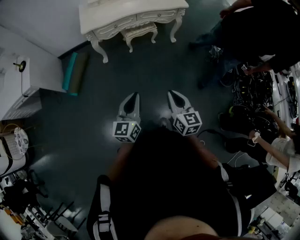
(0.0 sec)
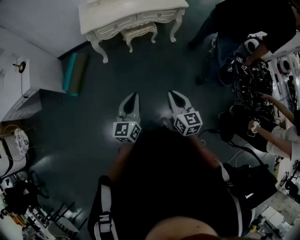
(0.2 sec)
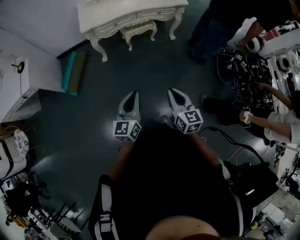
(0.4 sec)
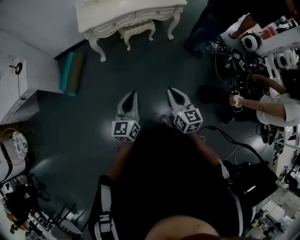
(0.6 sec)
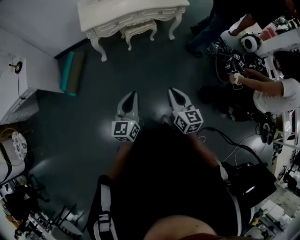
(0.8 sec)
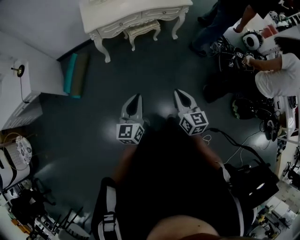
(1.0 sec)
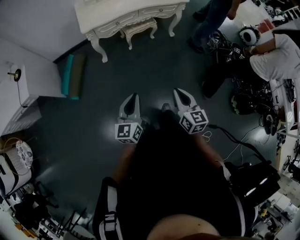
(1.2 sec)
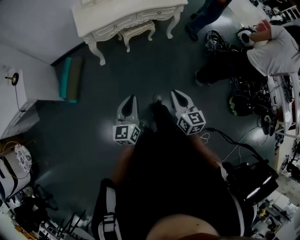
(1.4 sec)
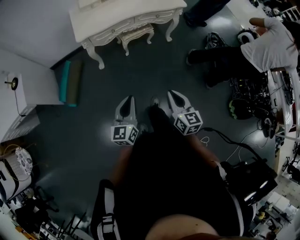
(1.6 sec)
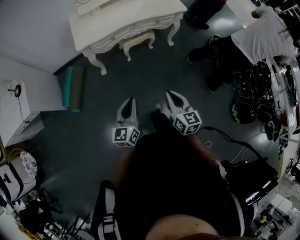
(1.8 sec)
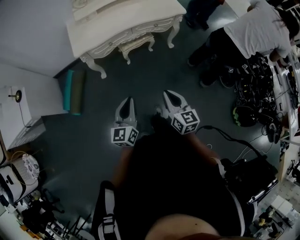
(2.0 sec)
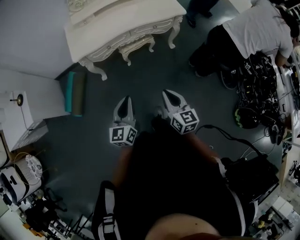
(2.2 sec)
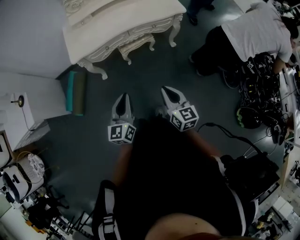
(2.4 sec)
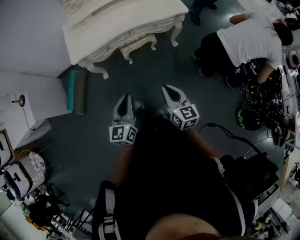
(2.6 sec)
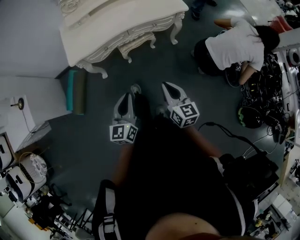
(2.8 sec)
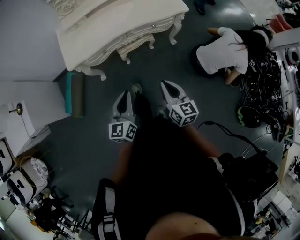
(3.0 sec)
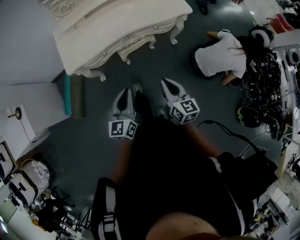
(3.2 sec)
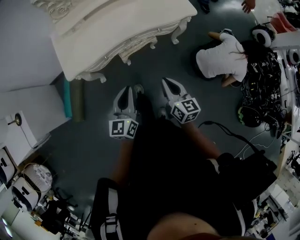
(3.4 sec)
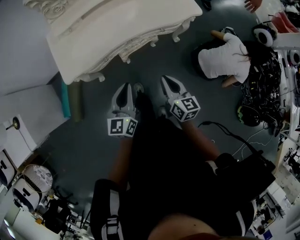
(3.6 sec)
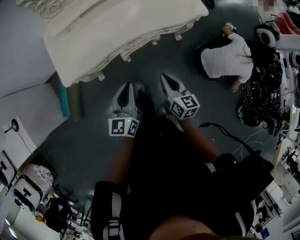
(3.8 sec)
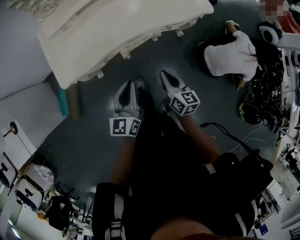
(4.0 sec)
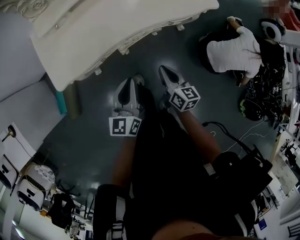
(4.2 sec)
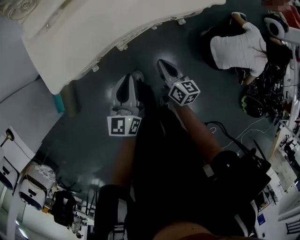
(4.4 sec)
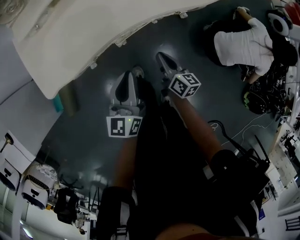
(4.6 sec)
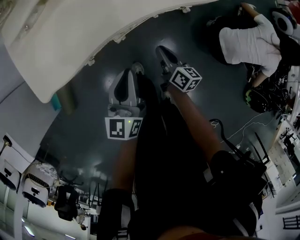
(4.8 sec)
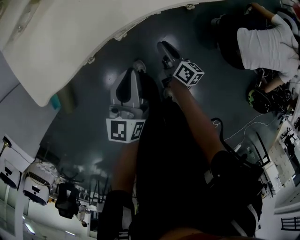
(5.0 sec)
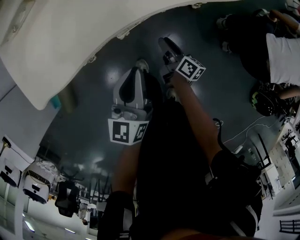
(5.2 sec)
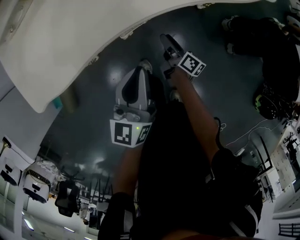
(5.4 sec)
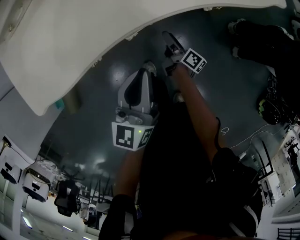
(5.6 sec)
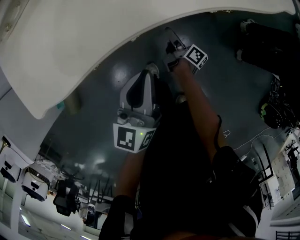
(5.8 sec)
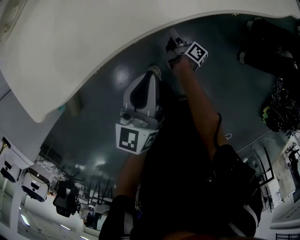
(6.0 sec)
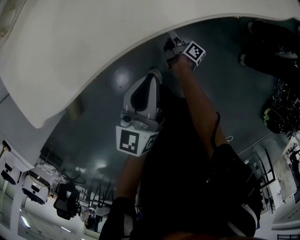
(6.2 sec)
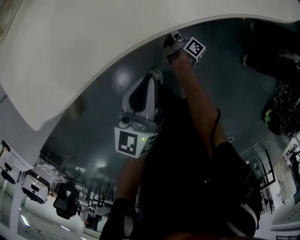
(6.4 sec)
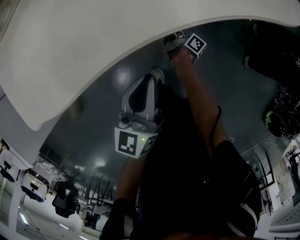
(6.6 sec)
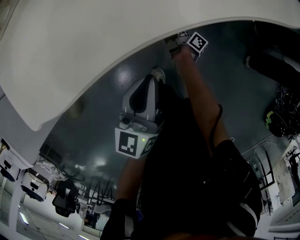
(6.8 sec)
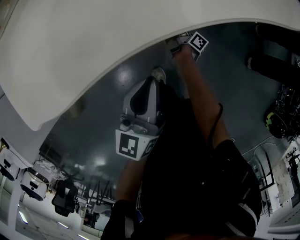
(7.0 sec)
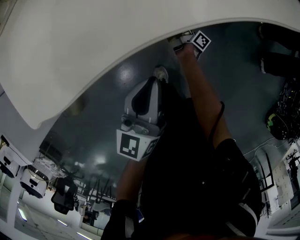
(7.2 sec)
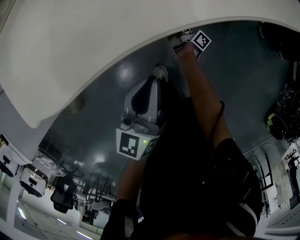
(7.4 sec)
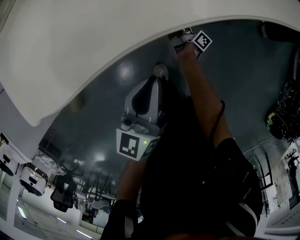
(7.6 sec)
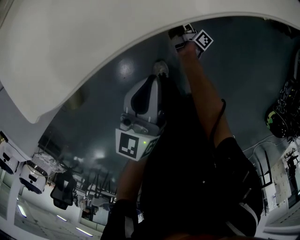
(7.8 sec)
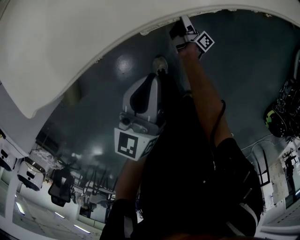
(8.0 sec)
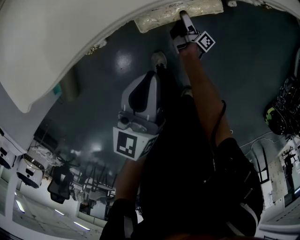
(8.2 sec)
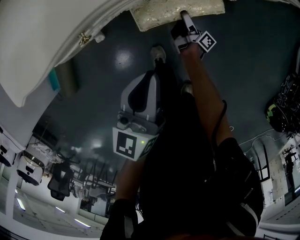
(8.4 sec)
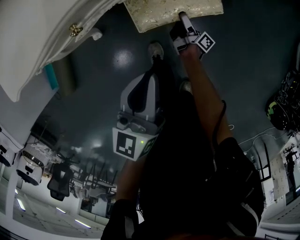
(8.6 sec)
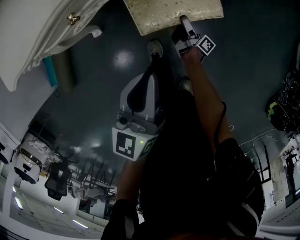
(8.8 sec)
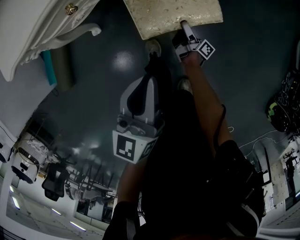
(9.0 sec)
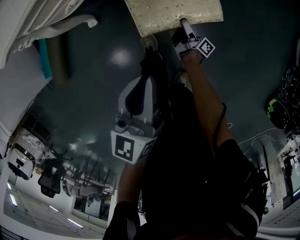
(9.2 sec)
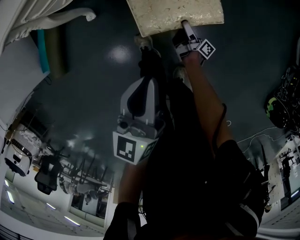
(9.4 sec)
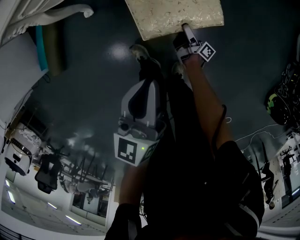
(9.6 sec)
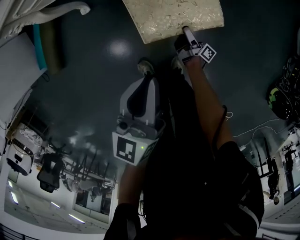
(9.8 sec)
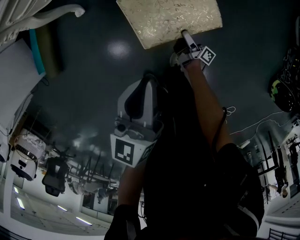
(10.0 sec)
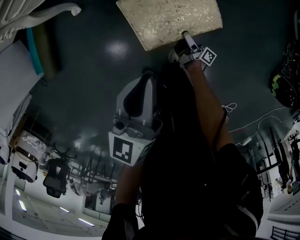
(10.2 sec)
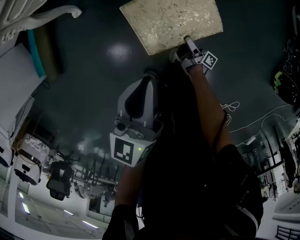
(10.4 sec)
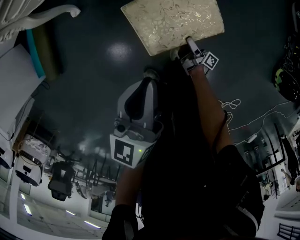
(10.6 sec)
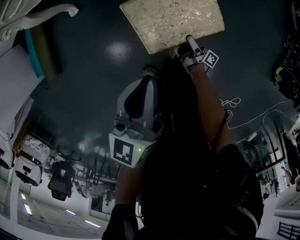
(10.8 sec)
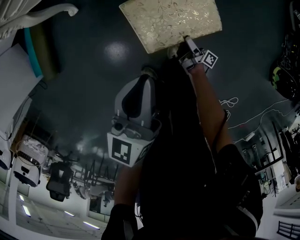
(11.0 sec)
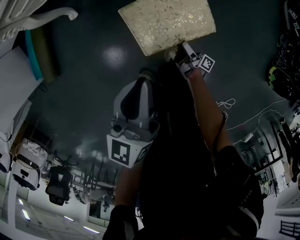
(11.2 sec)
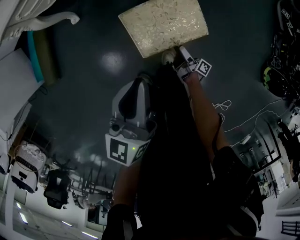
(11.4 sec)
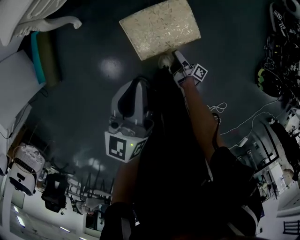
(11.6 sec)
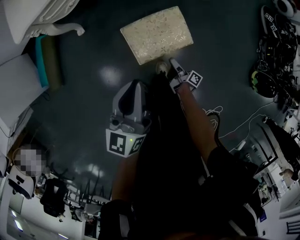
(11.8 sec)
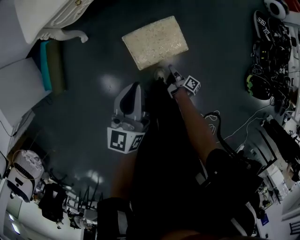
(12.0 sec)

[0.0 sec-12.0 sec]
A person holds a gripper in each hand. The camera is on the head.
0.0 sec to 1.6 sec: The grippers both shift to the left and forward by approximately 10 cm.
1.6 sec to 3.0 sec: The left gripper travels forward and to the right by approximately 25 cm, while the right gripper is displaced forward by about 25 cm.
3.0 sec to 4.4 sec: The two grippers go about 30 cm forward and downward. The right gripper turns by approximately 20 degrees.
4.4 sec to 6.0 sec: The left gripper moves downward, approximately 15 cm, while the right gripper shifts some 40 cm downward and forward, rolls clockwise, seen from behind, by about 40 degrees, and opens up.
6.0 sec to 7.6 sec: The right gripper is displaced downward by some 5 cm, while the left gripper changes place by about 5 cm.
7.6 sec to 9.0 sec: The two grippers go roughly 20 cm backward.
9.0 sec to 10.4 sec: The right gripper is displaced backward by about 30 cm. The left gripper is displaced backward by some 20 cm.
10.4 sec to 12.0 sec: The two grippers go roughly 20 cm upward. The right gripper turns by roughly 20 degrees, and closes up.

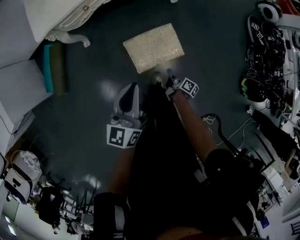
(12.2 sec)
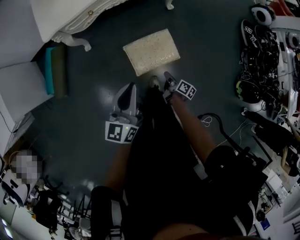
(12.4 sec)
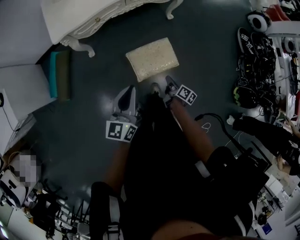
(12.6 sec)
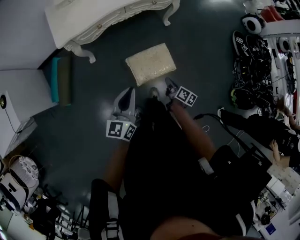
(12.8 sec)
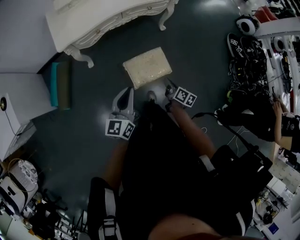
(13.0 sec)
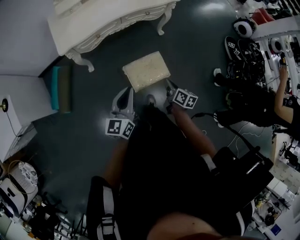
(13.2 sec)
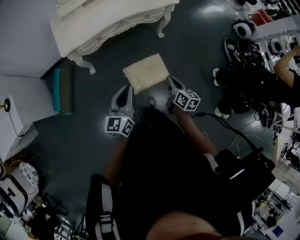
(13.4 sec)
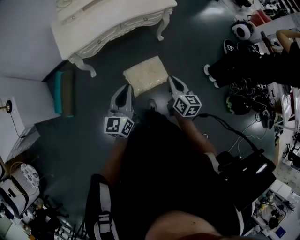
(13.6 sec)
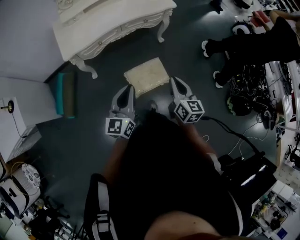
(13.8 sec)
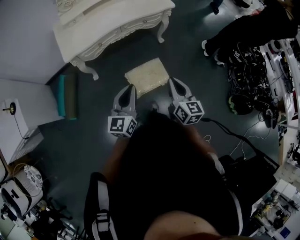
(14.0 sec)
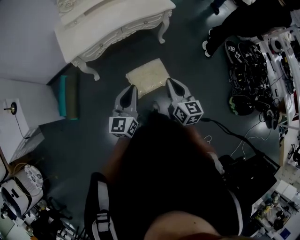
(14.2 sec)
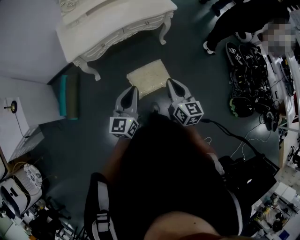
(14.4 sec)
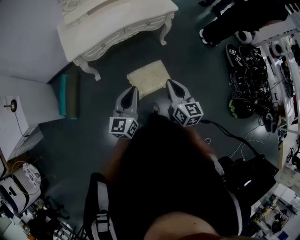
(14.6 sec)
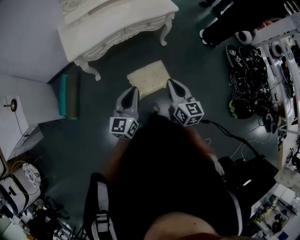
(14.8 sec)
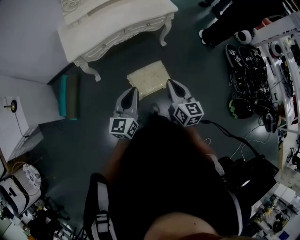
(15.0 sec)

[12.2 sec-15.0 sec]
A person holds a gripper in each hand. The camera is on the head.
12.2 sec to 13.6 sec: The left gripper travels upward by some 15 cm, while the right gripper moves upward, roughly 40 cm, and rotates around the line of its fingers by about 50 degrees, counterclockwise from behind.
13.6 sec to 15.0 sec: The right gripper shifts roughly 5 cm upward.

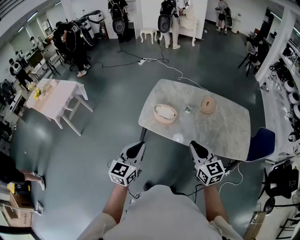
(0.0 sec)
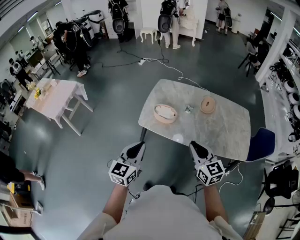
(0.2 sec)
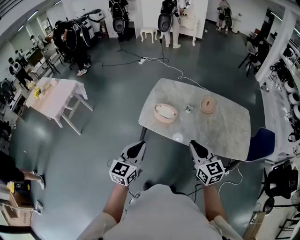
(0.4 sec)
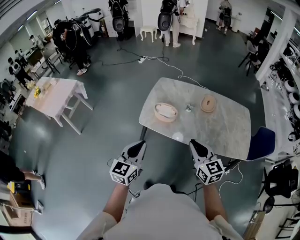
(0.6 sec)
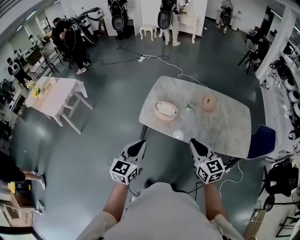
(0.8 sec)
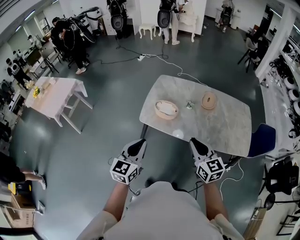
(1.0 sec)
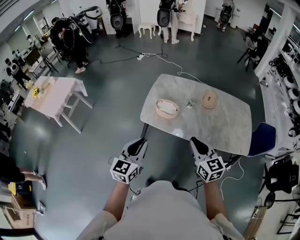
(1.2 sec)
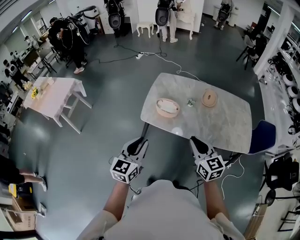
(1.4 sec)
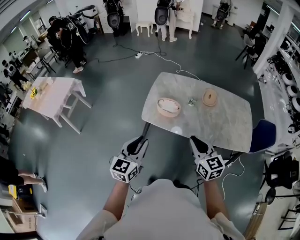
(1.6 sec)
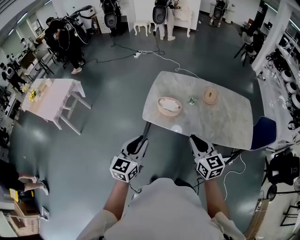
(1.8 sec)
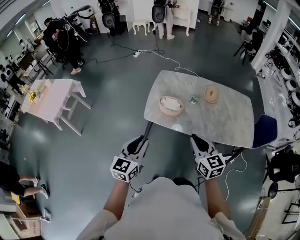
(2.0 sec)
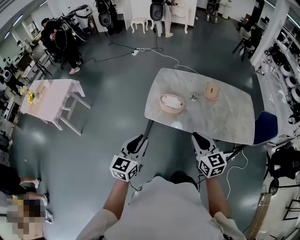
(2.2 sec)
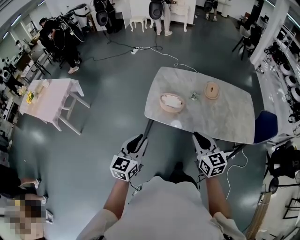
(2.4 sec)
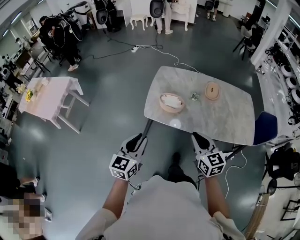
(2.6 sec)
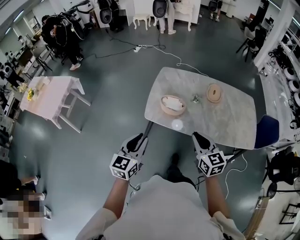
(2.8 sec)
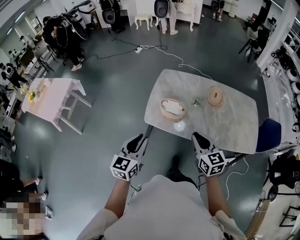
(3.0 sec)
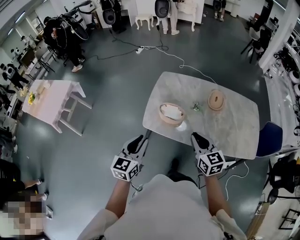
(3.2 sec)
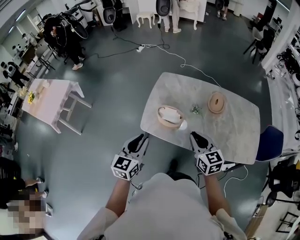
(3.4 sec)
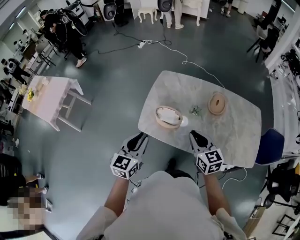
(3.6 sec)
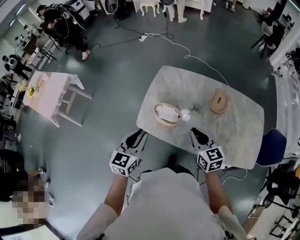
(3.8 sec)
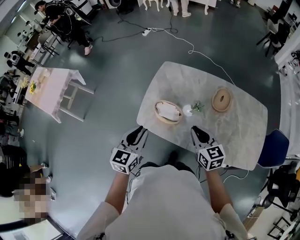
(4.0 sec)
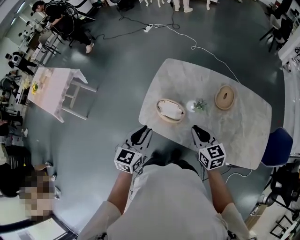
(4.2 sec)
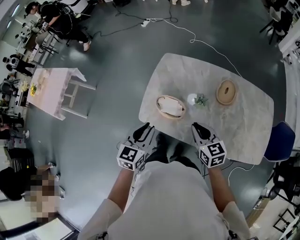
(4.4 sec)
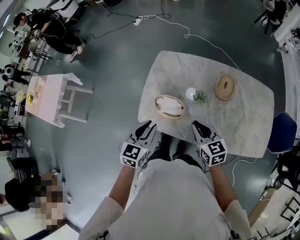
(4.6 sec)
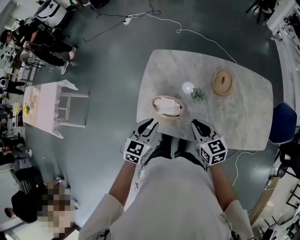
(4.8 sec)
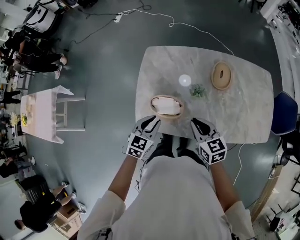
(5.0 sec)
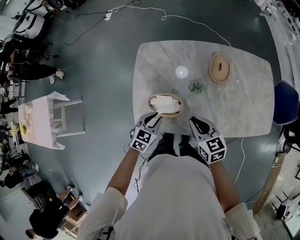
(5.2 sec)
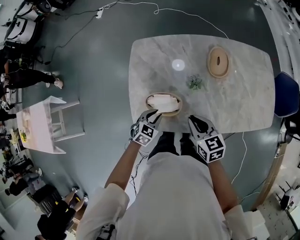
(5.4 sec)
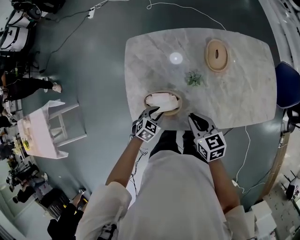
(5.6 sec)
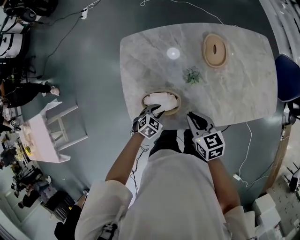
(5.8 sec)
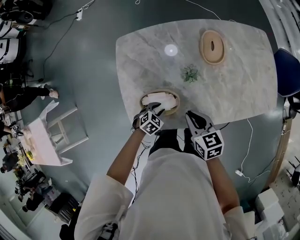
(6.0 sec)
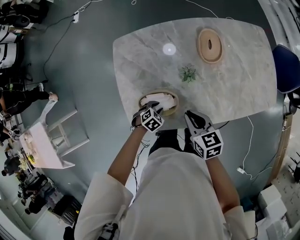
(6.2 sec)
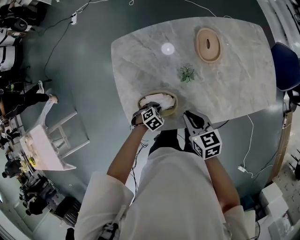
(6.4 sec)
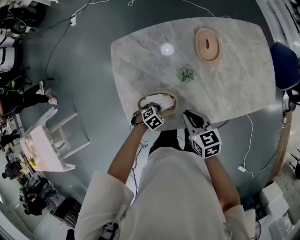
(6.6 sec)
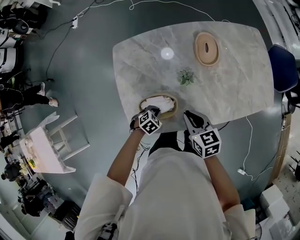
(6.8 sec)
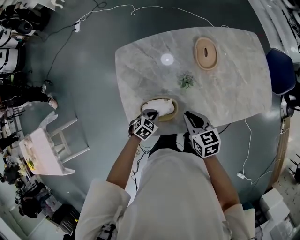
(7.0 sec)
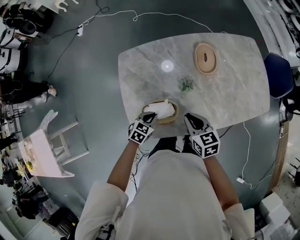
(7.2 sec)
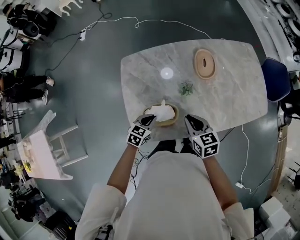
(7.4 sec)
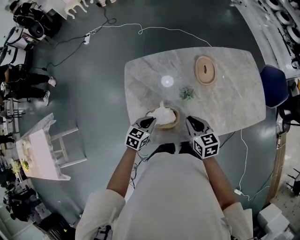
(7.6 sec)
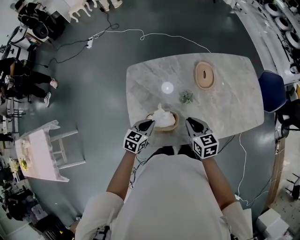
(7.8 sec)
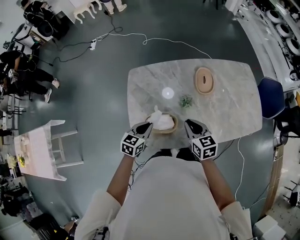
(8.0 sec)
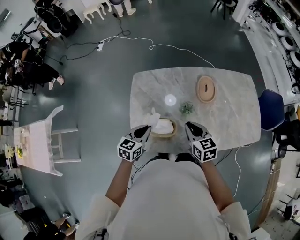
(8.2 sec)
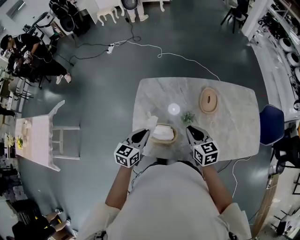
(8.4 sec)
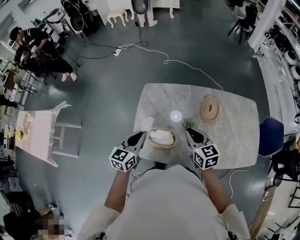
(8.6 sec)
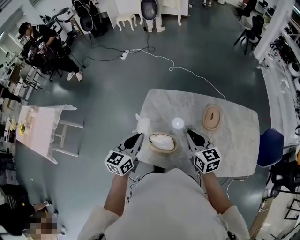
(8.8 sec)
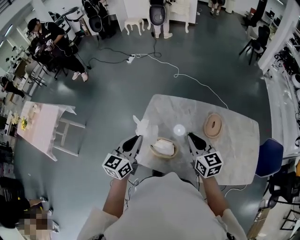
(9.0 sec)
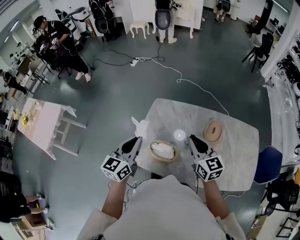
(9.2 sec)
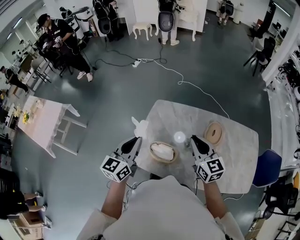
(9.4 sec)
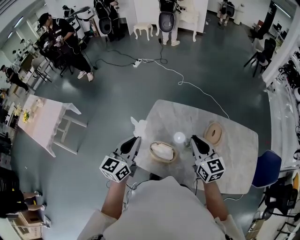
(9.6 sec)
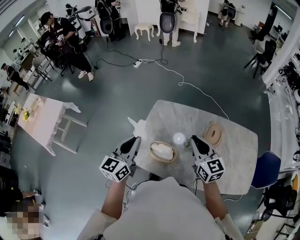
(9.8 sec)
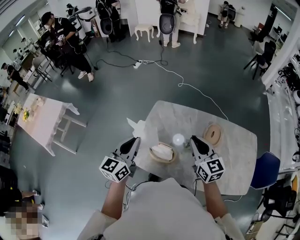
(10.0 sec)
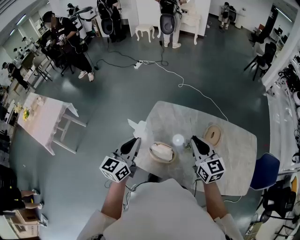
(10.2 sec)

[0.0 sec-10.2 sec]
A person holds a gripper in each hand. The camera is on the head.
0.0 sec to 1.4 sec: The grippers make only small movements.
1.4 sec to 3.0 sec: Both grippers move forward, approximately 10 cm.
3.0 sec to 4.4 sec: The left gripper is displaced forward and to the right by about 20 cm. The right gripper shifts some 20 cm forward and downward.
4.4 sec to 5.8 sec: The right gripper heads downward, covering some 15 cm, and rotates roughly 30 degrees, while the left gripper is displaced downward by approximately 35 cm, and tips its fingers downward by approximately 40 degrees.
5.8 sec to 7.2 sec: The left gripper goes about 5 cm upward, and closes.
7.2 sec to 8.8 sec: The left gripper moves upward, some 30 cm, and points its fingers some 40 degrees further upward. The right gripper is displaced upward by about 15 cm, and changes its angle by some 30 degrees.
8.8 sec to 10.2 sec: Both grippers travel together upward, approximately 10 cm.
